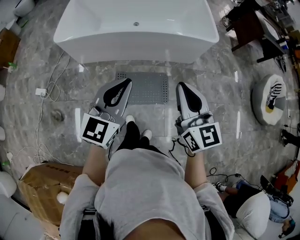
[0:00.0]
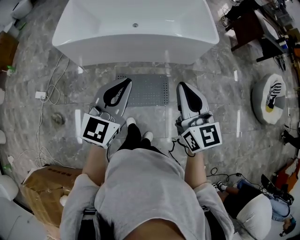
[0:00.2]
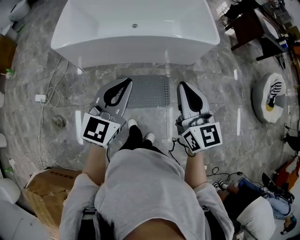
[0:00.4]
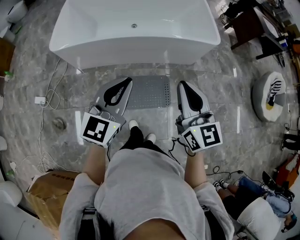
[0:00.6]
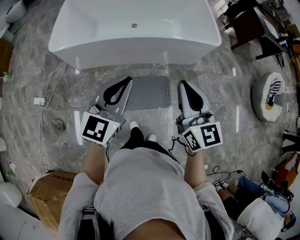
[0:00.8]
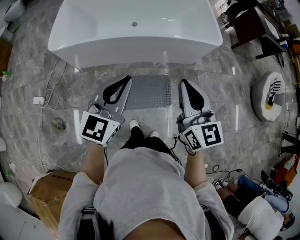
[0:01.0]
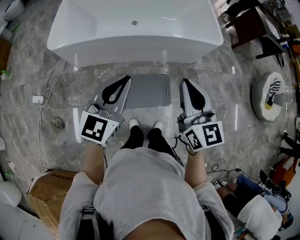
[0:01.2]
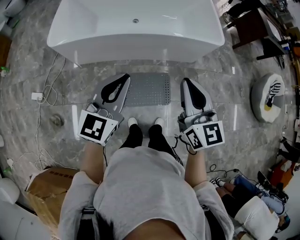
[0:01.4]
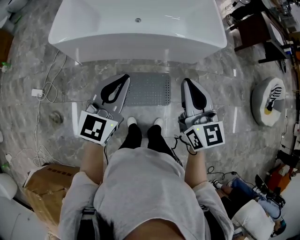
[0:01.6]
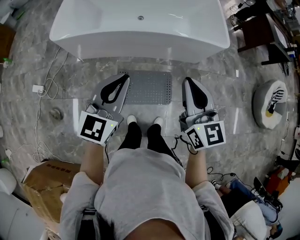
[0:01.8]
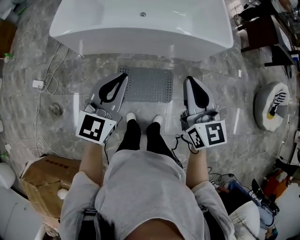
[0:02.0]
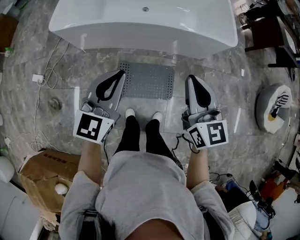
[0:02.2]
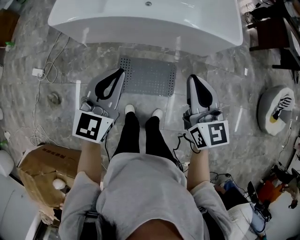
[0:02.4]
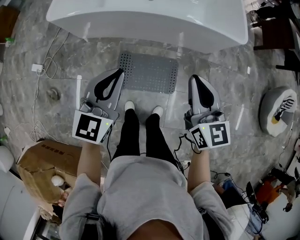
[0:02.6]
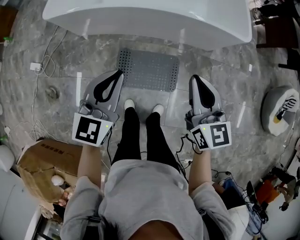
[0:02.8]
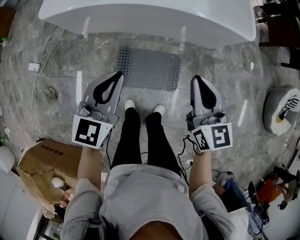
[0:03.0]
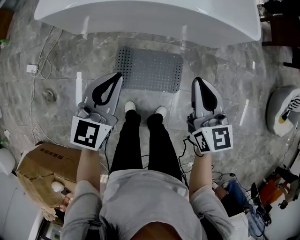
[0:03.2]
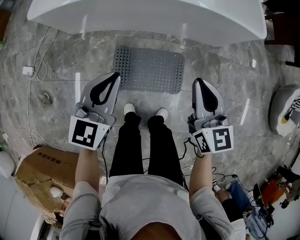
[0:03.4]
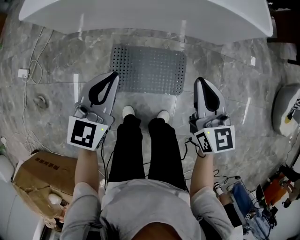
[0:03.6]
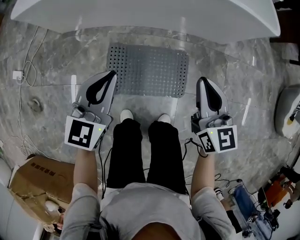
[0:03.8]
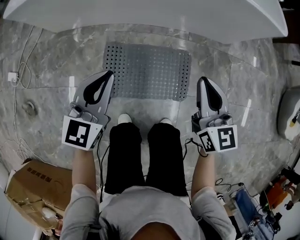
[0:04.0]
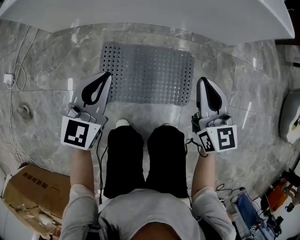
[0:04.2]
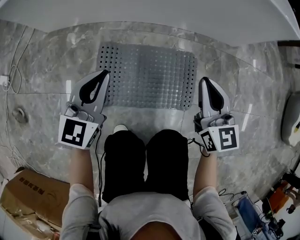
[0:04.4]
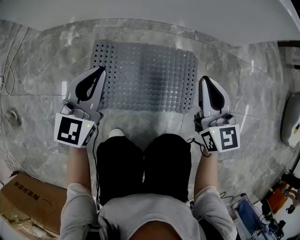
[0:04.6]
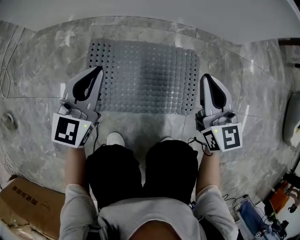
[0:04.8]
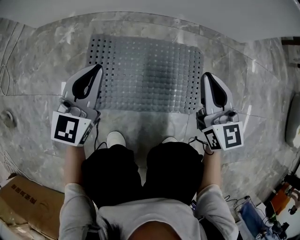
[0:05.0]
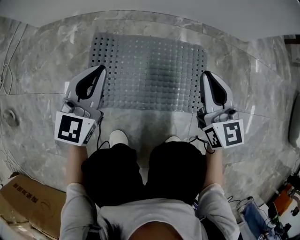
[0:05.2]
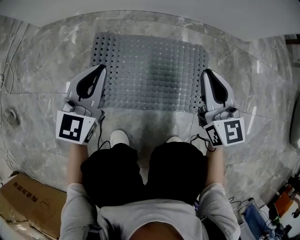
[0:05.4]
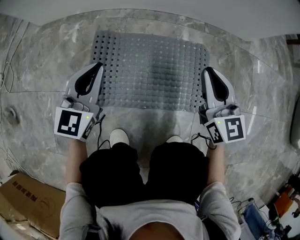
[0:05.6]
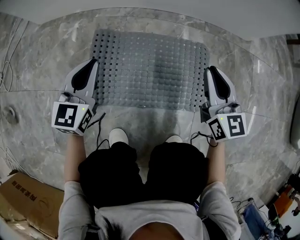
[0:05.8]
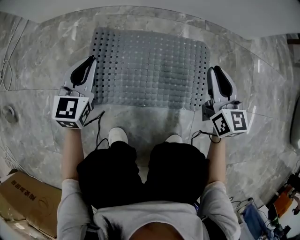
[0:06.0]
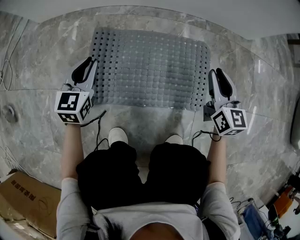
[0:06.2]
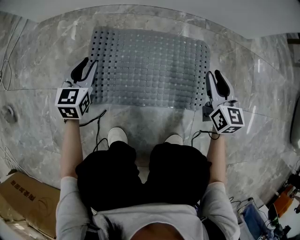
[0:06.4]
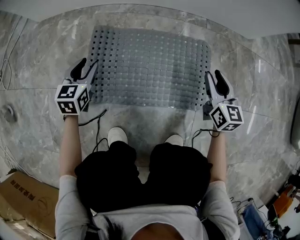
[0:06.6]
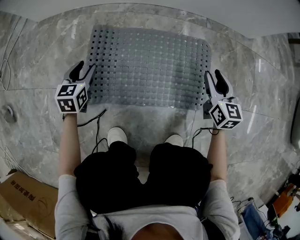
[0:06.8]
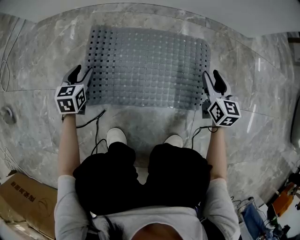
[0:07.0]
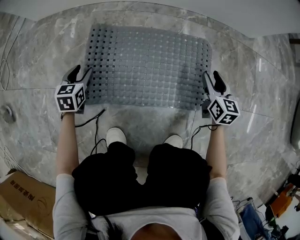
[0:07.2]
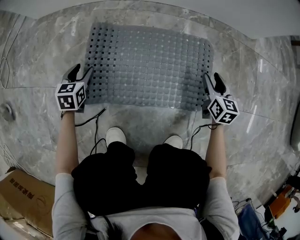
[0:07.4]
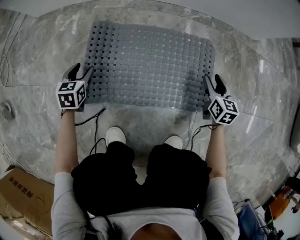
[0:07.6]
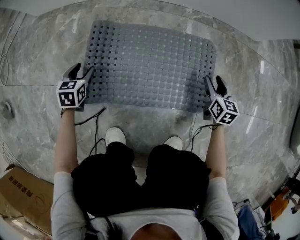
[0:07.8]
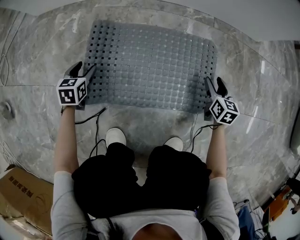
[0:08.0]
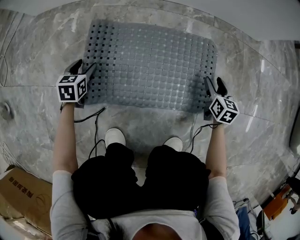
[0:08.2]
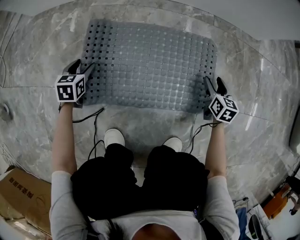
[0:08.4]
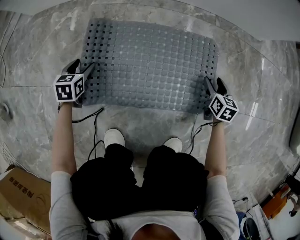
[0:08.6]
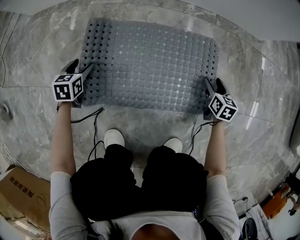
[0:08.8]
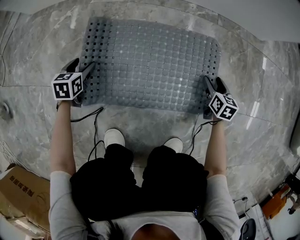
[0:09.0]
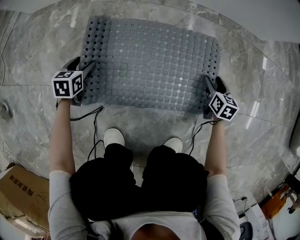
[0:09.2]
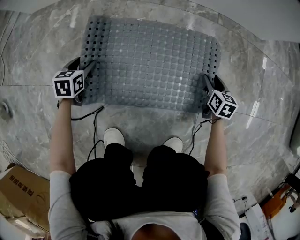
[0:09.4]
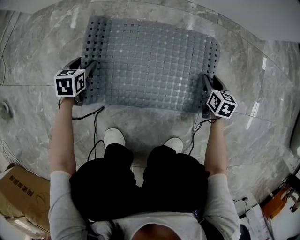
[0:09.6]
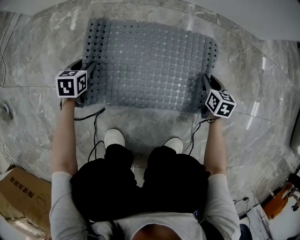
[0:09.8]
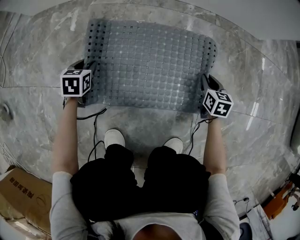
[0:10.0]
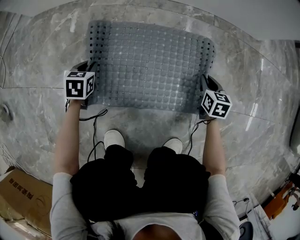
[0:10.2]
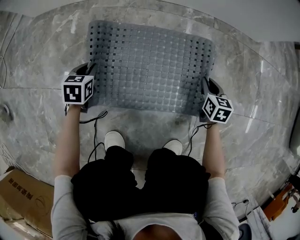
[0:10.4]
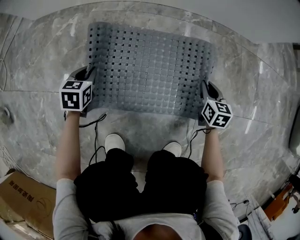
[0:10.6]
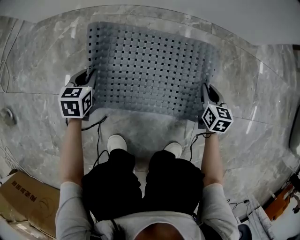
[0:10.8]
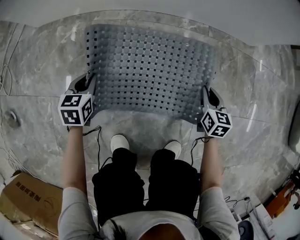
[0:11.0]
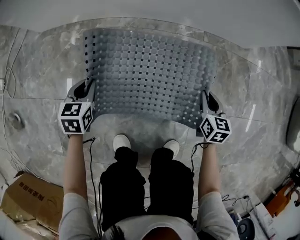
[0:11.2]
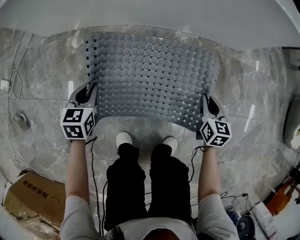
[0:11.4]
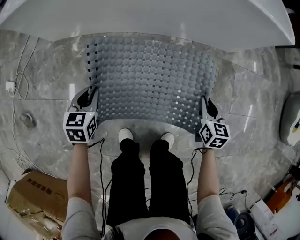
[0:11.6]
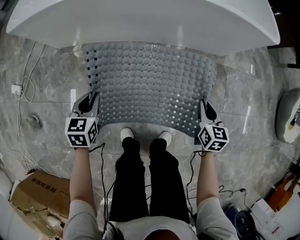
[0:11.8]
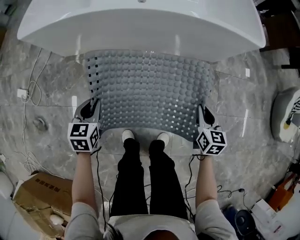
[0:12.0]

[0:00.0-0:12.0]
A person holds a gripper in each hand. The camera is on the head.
0:00.0 to 0:01.6: Both grippers travel together forward and to the left, approximately 15 cm.
0:01.6 to 0:03.0: The grippers both shift downward by about 20 cm.
0:03.0 to 0:04.4: The grippers both shift downward by some 50 cm.
0:04.4 to 0:06.0: Both grippers travel together downward, roughly 20 cm.
0:06.0 to 0:07.6: The left gripper travels downward and to the left by some 20 cm, rotates approximately 30 degrees, and opens up; the right gripper is displaced downward by about 20 cm, swivels approximately 20 degrees, and opens up.
0:07.6 to 0:09.0: The right gripper shifts some 10 cm downward.
0:09.0 to 0:10.4: The right gripper changes place by about 5 cm, and closes up. Meanwhile the left gripper closes up.
0:10.4 to 0:12.0: Both grippers travel together upward, approximately 50 cm.

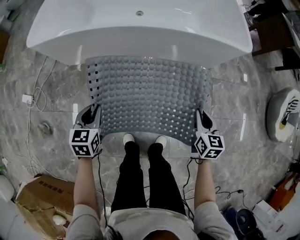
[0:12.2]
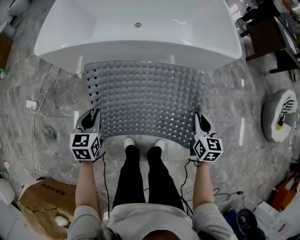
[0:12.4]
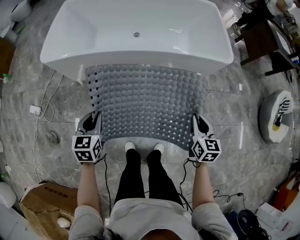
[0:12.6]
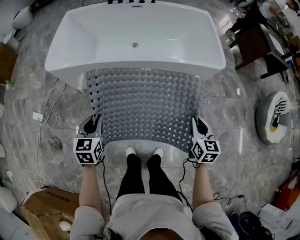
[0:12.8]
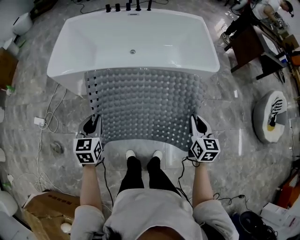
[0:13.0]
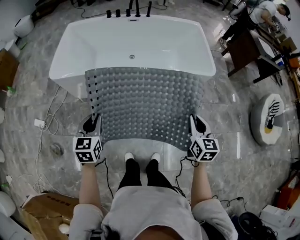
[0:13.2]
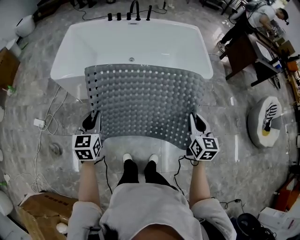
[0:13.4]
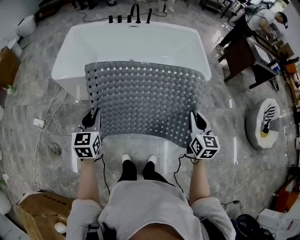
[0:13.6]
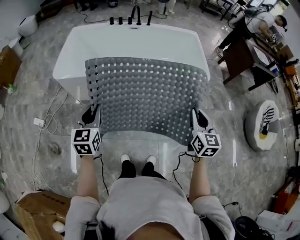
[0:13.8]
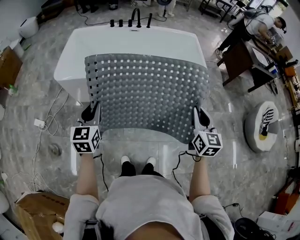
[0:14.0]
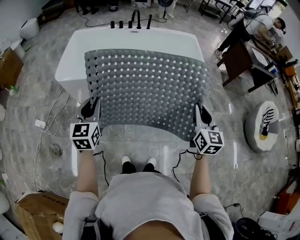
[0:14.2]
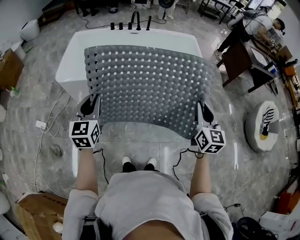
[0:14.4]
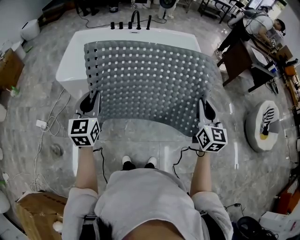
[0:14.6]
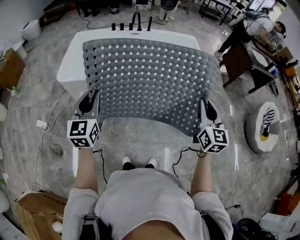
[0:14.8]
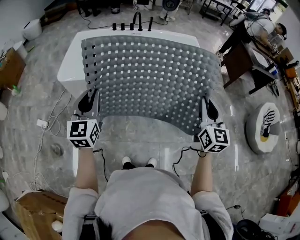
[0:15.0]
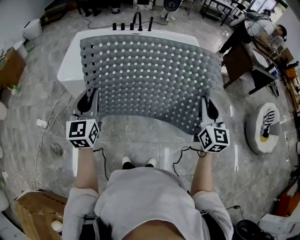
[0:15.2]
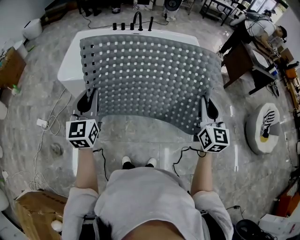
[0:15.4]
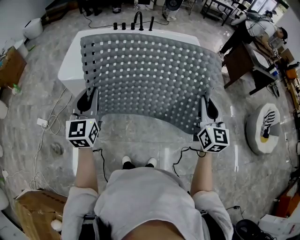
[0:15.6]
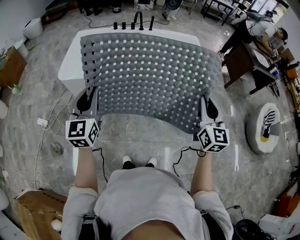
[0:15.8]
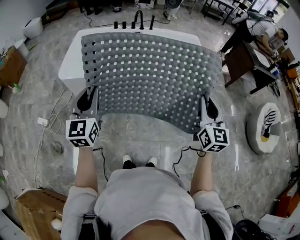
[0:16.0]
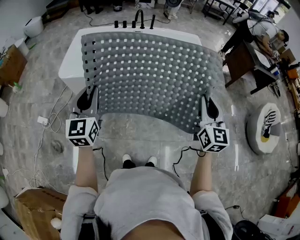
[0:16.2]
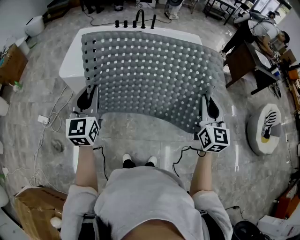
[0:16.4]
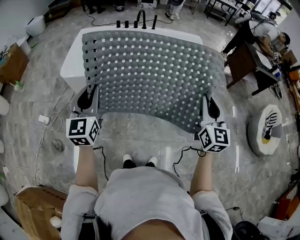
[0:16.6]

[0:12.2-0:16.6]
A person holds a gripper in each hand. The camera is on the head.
0:12.2 to 0:13.6: The two grippers go roughly 35 cm upward.
0:13.6 to 0:15.2: Both grippers move upward, about 15 cm. The left gripper turns by approximately 20 degrees.
0:15.2 to 0:16.6: Neither gripper changes place.

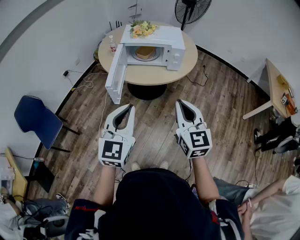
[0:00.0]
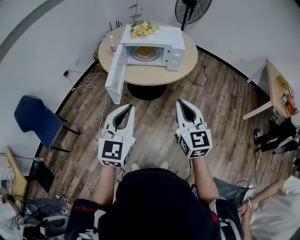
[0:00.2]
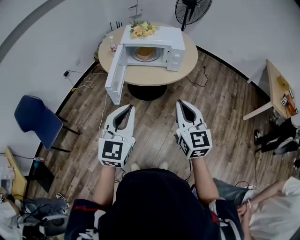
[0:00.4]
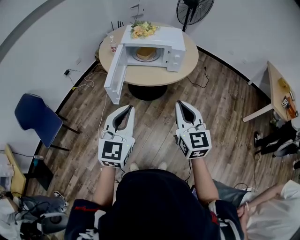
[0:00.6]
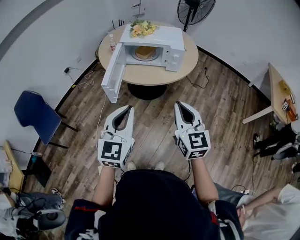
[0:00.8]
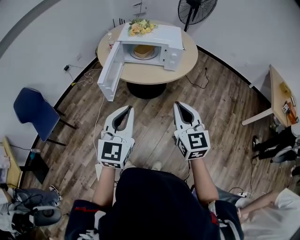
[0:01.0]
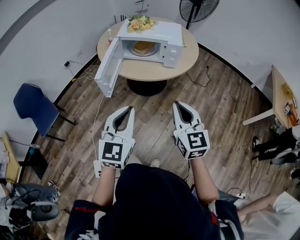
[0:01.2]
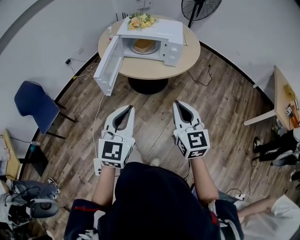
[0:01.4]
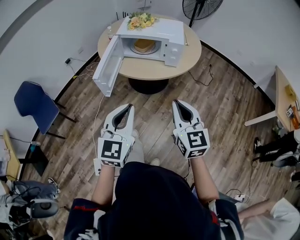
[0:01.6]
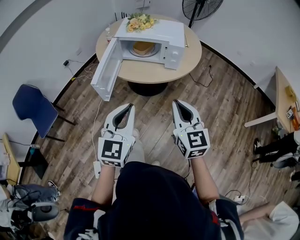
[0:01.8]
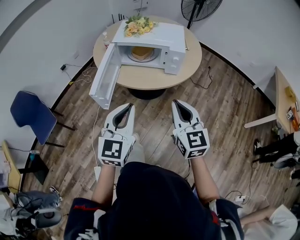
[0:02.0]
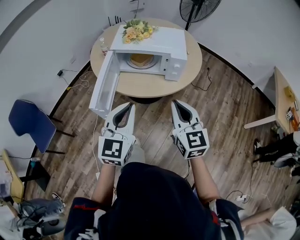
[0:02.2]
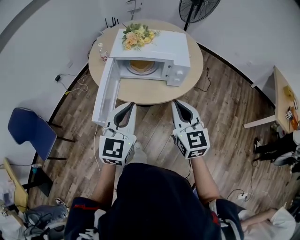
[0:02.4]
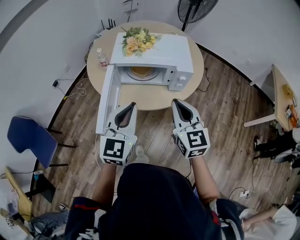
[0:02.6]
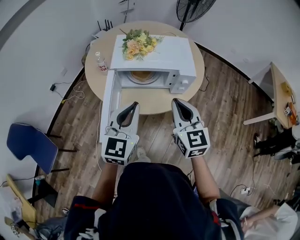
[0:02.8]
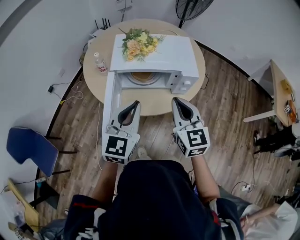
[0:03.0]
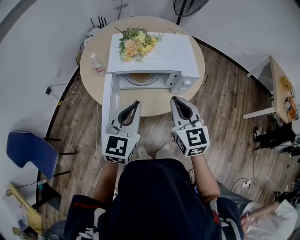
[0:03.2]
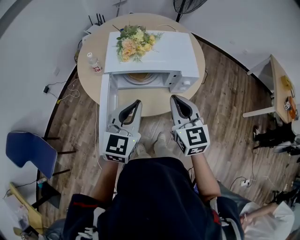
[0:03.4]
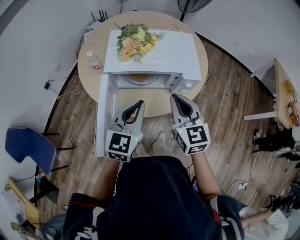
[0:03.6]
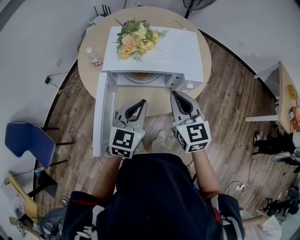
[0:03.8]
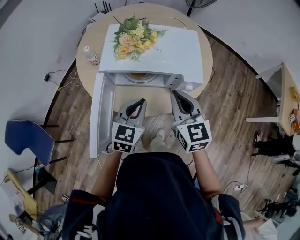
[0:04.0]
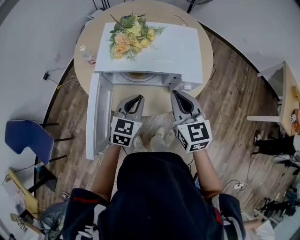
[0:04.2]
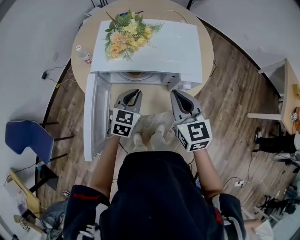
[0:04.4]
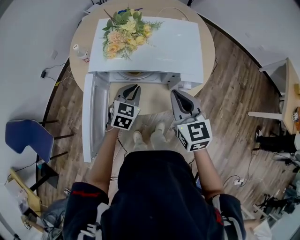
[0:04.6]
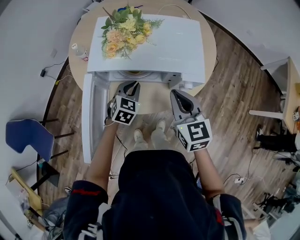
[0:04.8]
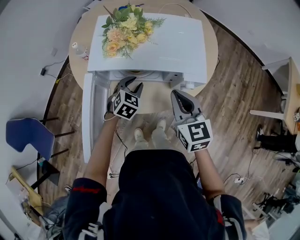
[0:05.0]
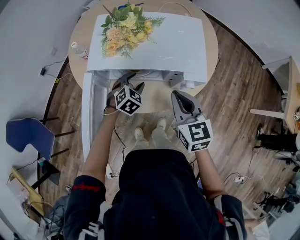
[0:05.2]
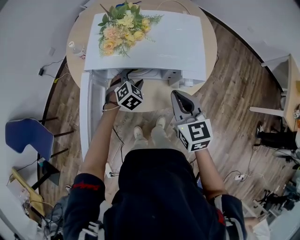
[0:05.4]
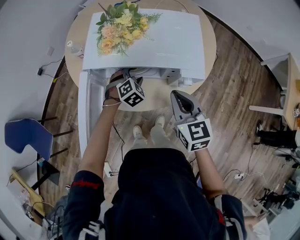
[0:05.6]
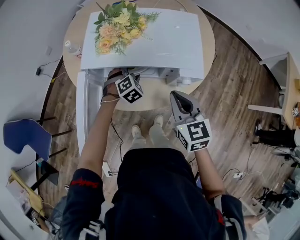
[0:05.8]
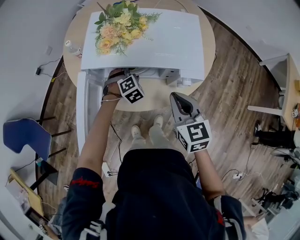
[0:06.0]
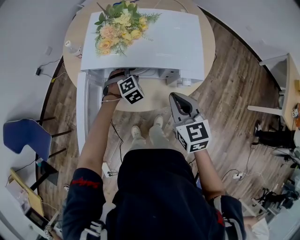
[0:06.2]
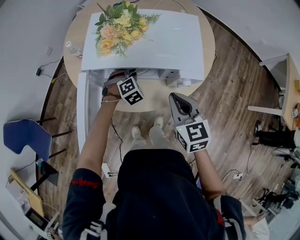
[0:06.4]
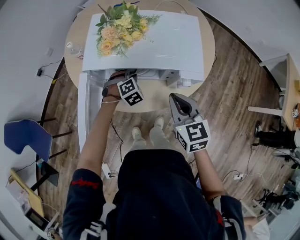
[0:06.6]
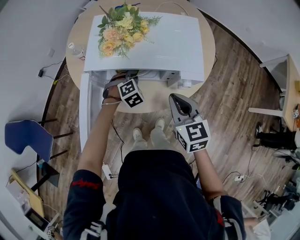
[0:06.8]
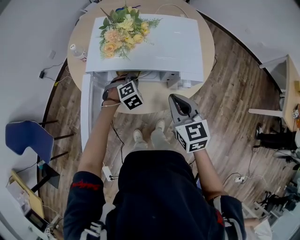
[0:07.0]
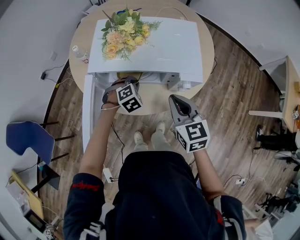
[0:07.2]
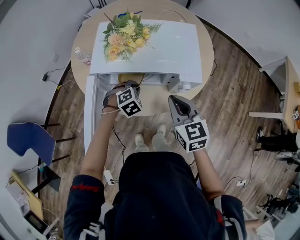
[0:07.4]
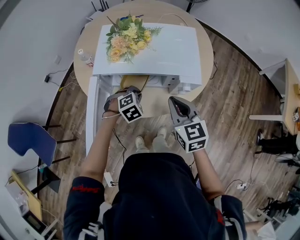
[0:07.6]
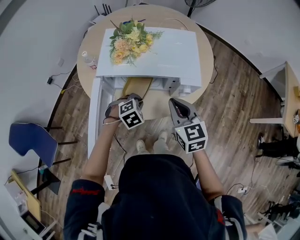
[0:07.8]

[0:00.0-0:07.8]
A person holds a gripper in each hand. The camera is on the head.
0:00.0 to 0:01.6: Both grippers travel together to the right, roughly 10 cm.
0:01.6 to 0:03.2: The two grippers go approximately 35 cm forward.
0:03.2 to 0:04.6: The right gripper travels forward, downward and to the right by some 15 cm. The left gripper heads downward and forward, covering approximately 25 cm, and rotates roughly 30 degrees.
0:04.6 to 0:06.2: The left gripper moves downward and forward, approximately 10 cm, rotates about 40 degrees, and opens up.
0:06.2 to 0:07.8: The left gripper goes about 15 cm backward and upward, and closes its fingers.
